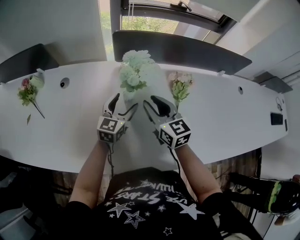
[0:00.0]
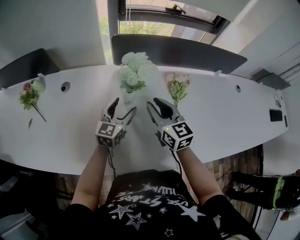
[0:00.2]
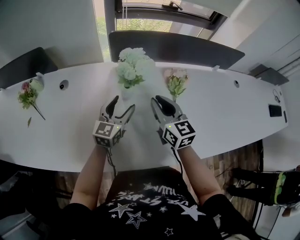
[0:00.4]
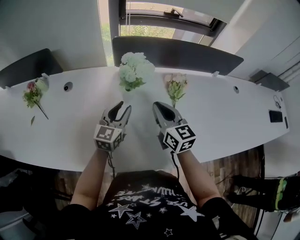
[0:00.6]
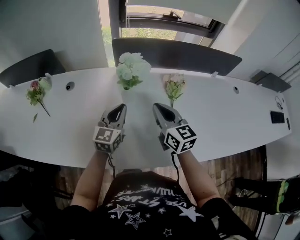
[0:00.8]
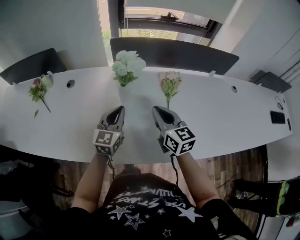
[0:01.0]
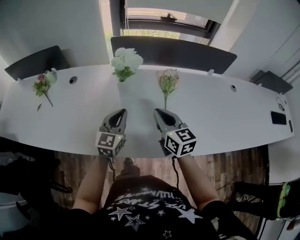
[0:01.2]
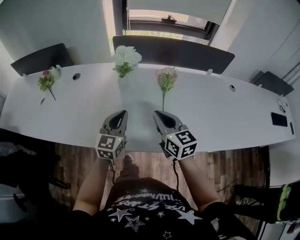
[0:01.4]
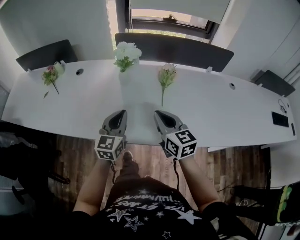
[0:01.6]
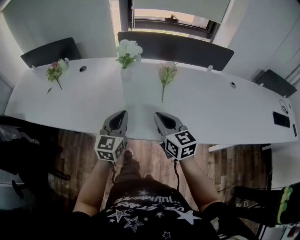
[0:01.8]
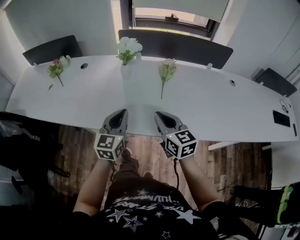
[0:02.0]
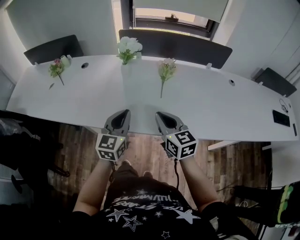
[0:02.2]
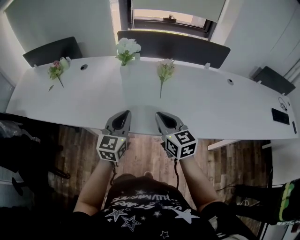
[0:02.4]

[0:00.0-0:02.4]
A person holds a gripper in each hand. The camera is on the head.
0:00.0 to 0:01.2: The right gripper is displaced backward and to the right by roughly 15 cm, and closes, while the left gripper is displaced backward by some 15 cm, and closes up.
0:01.2 to 0:02.4: The two grippers go about 15 cm backward.

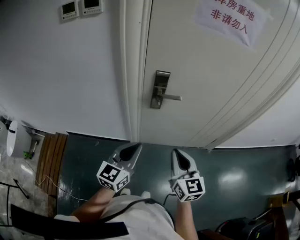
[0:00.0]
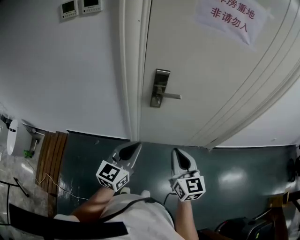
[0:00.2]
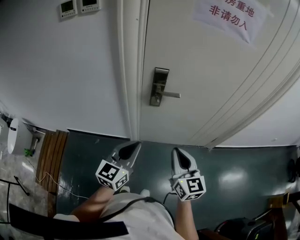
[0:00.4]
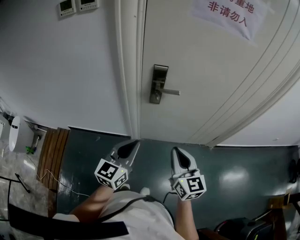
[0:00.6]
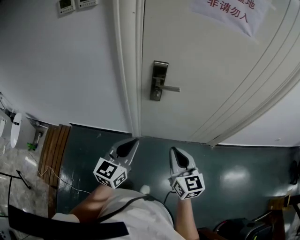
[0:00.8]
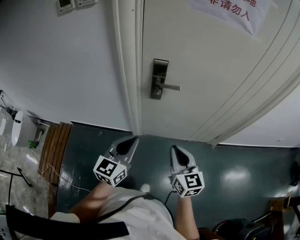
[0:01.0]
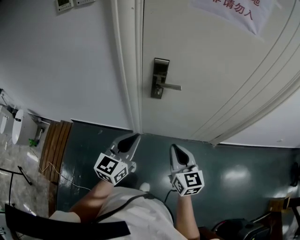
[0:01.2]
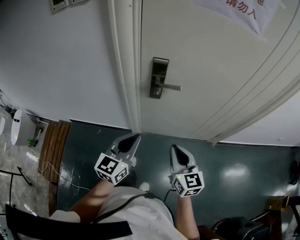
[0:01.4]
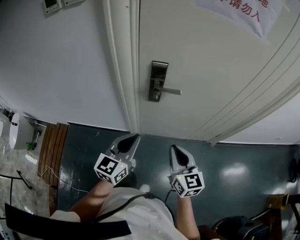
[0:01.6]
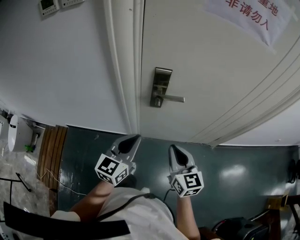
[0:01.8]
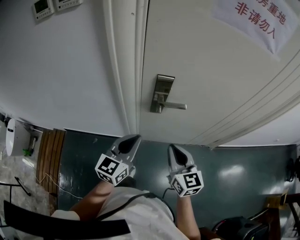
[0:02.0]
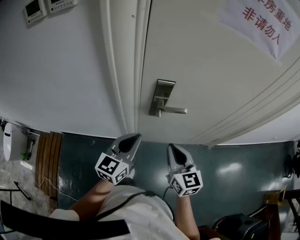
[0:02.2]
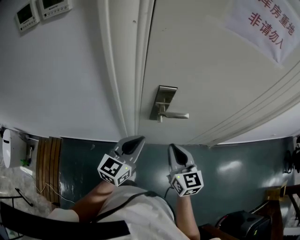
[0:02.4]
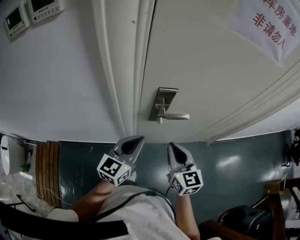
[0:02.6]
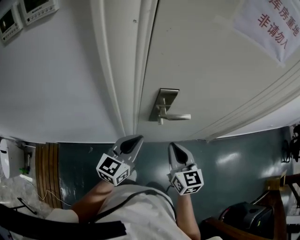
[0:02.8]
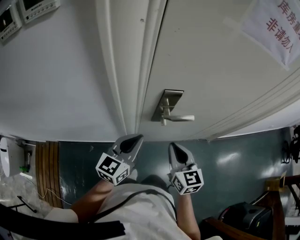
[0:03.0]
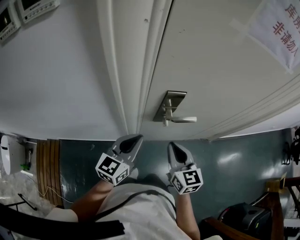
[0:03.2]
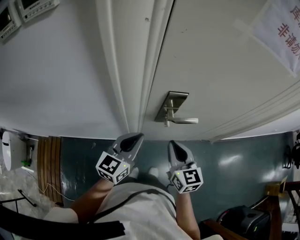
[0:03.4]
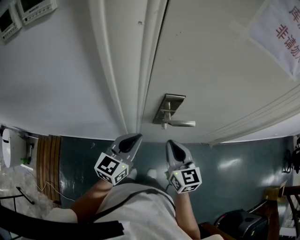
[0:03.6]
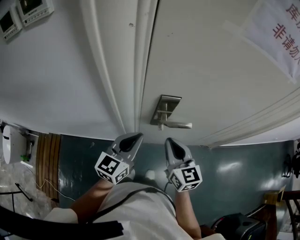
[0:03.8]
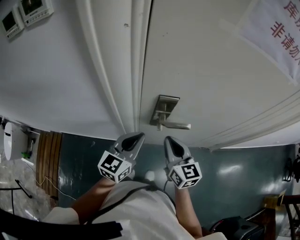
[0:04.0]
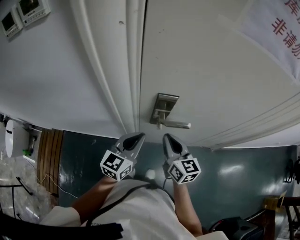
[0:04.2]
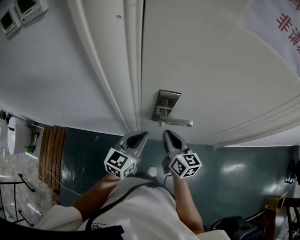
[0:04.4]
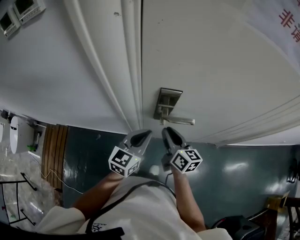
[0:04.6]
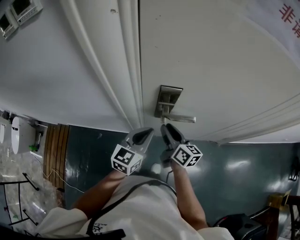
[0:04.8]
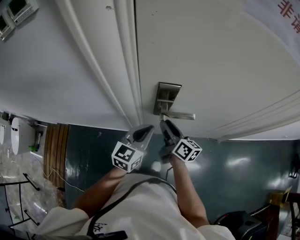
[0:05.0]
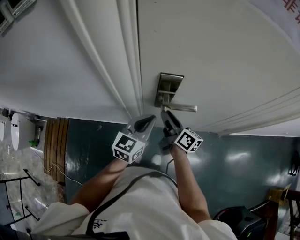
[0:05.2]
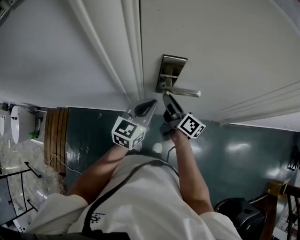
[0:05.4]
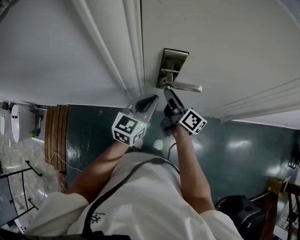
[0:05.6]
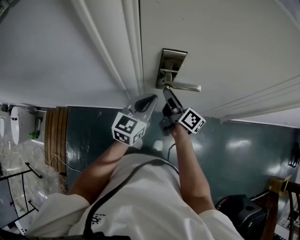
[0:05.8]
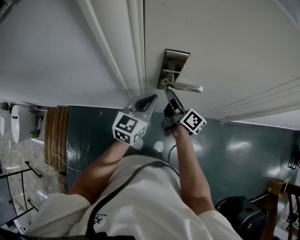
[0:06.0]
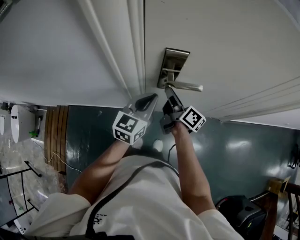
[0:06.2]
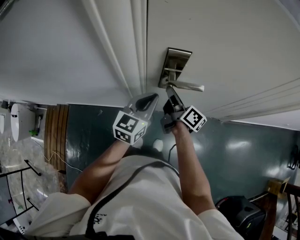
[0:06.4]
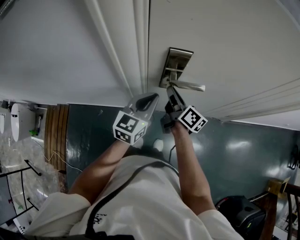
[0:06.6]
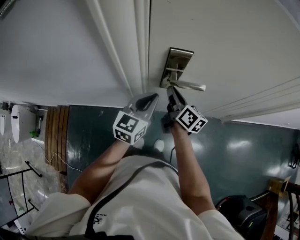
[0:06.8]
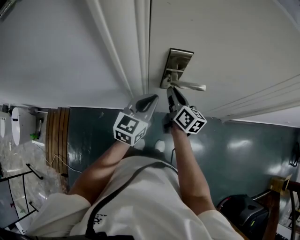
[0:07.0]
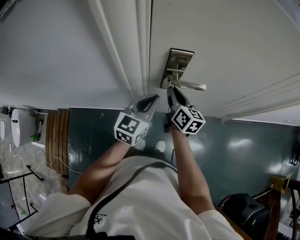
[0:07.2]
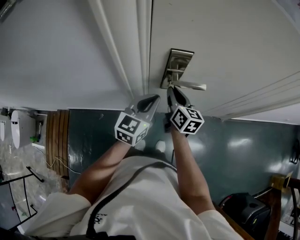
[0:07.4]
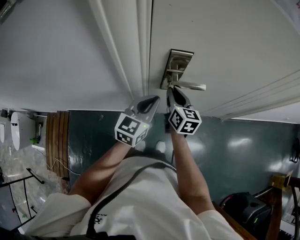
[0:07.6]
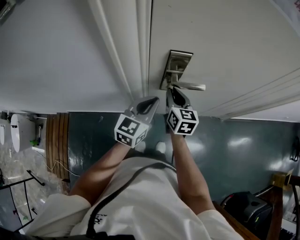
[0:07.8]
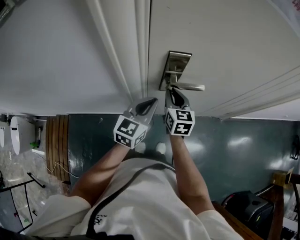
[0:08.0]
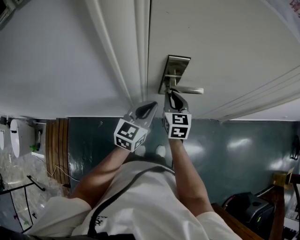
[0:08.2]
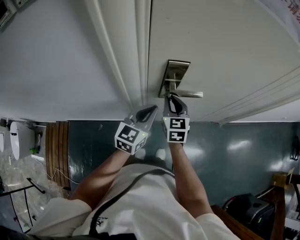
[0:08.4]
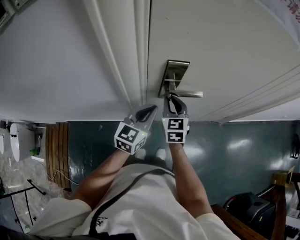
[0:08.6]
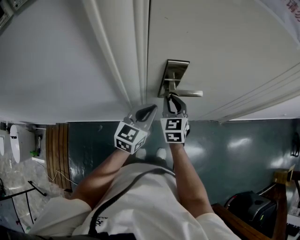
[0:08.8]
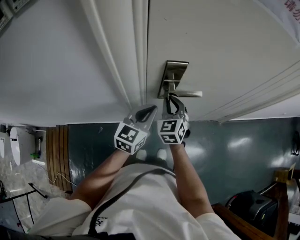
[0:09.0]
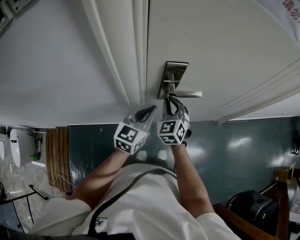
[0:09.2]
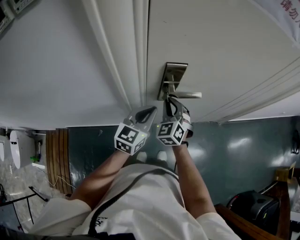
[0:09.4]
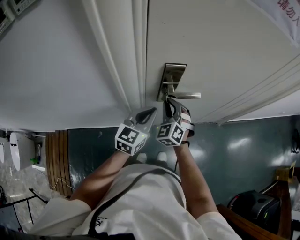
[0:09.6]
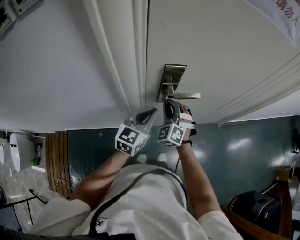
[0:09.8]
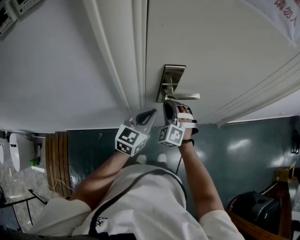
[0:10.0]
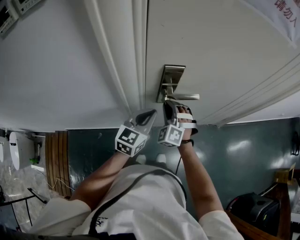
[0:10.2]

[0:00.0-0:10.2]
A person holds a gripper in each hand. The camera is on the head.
0:00.0 to 0:01.4: The right gripper goes approximately 5 cm downward.
0:01.4 to 0:03.0: The two grippers go approximately 20 cm forward and to the left.
0:03.0 to 0:04.4: The left gripper changes place by roughly 5 cm. The right gripper shifts approximately 10 cm forward, and swivels some 20 degrees.
0:04.4 to 0:05.8: The right gripper ends up roughly 5 cm from where it was, turns by roughly 40 degrees, and opens its fingers.
0:05.8 to 0:07.2: The right gripper swivels some 40 degrees, and closes its fingers.
0:07.2 to 0:08.8: The right gripper rotates around the line of its fingers by some 40 degrees, counterclockwise from behind.
0:08.8 to 0:10.2: The right gripper rolls counterclockwise, seen from behind, by roughly 50 degrees.

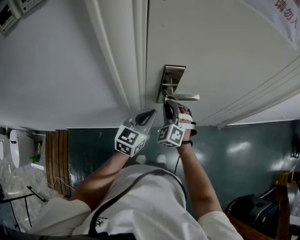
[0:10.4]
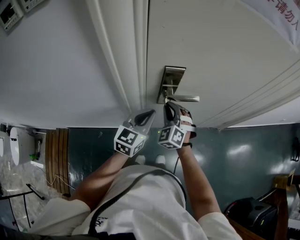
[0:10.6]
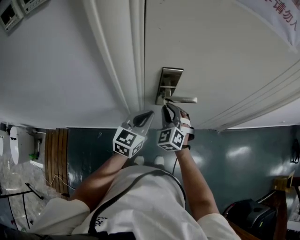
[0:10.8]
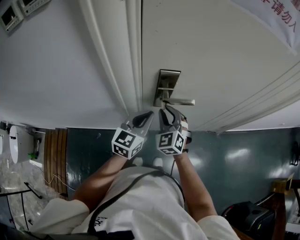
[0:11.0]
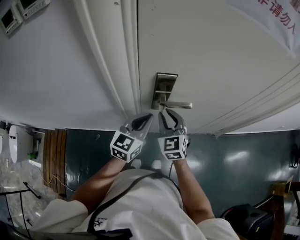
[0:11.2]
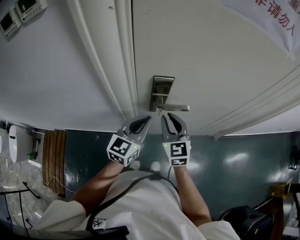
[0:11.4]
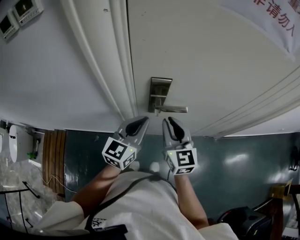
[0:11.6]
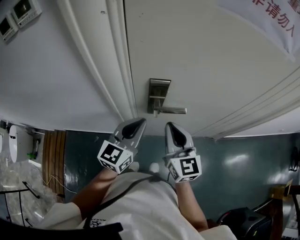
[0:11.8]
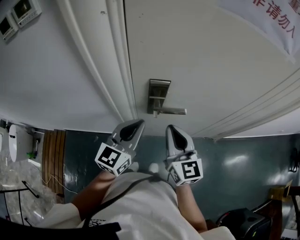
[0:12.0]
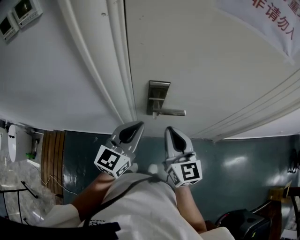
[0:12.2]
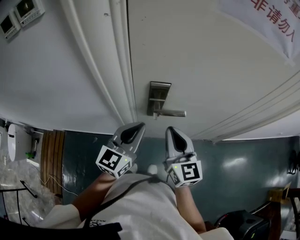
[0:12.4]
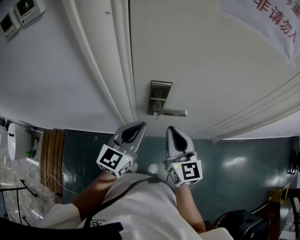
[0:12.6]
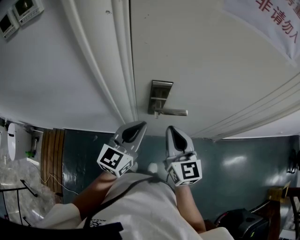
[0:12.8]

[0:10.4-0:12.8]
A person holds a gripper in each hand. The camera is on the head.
0:10.4 to 0:11.6: The left gripper goes about 5 cm upward. The right gripper shifts some 10 cm upward and to the right, and twists roughly 50 degrees clockwise, seen from behind.
0:11.6 to 0:12.8: There are only small adjustments of the grippers.

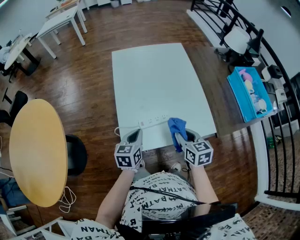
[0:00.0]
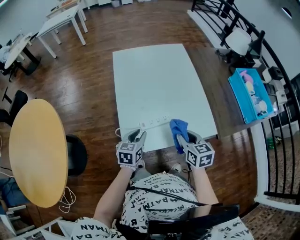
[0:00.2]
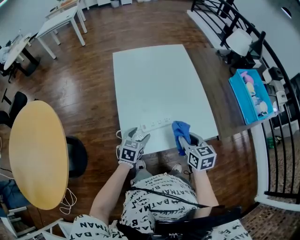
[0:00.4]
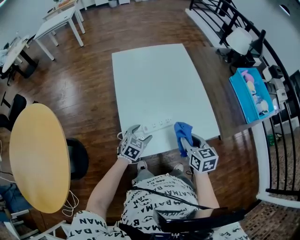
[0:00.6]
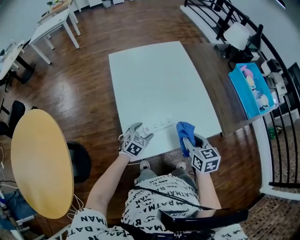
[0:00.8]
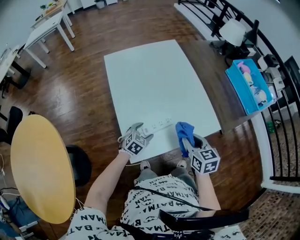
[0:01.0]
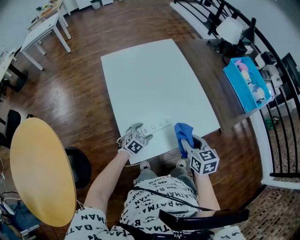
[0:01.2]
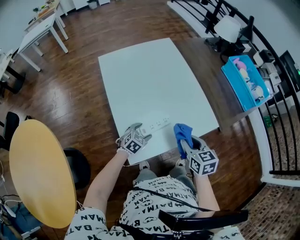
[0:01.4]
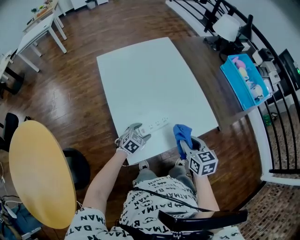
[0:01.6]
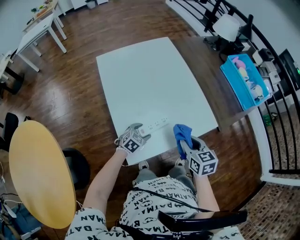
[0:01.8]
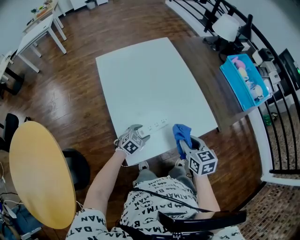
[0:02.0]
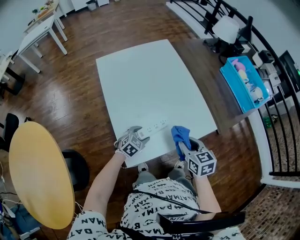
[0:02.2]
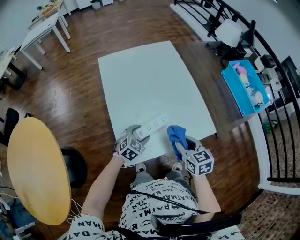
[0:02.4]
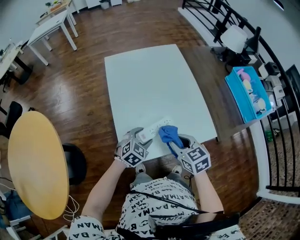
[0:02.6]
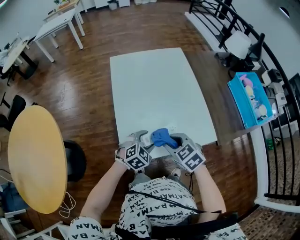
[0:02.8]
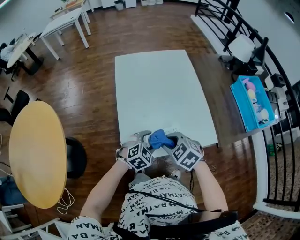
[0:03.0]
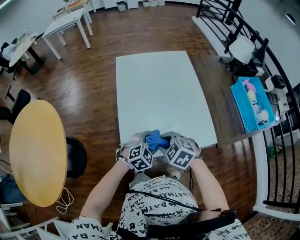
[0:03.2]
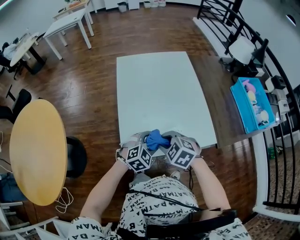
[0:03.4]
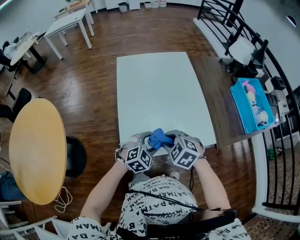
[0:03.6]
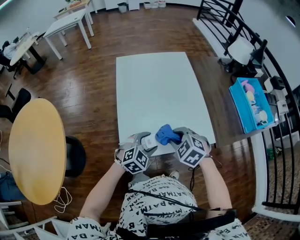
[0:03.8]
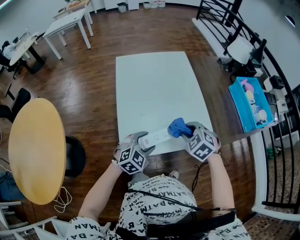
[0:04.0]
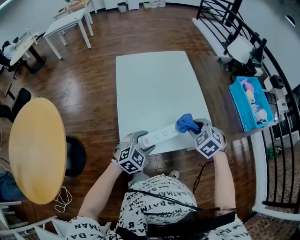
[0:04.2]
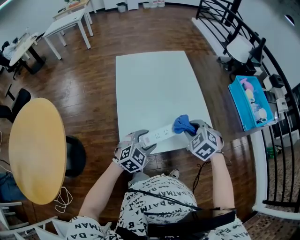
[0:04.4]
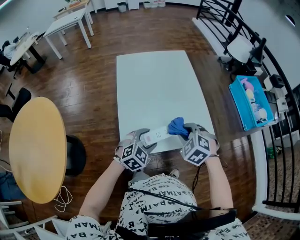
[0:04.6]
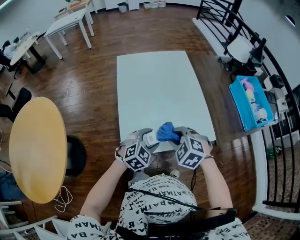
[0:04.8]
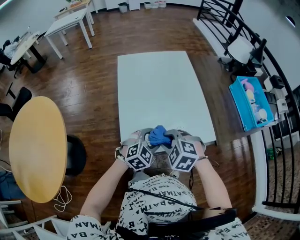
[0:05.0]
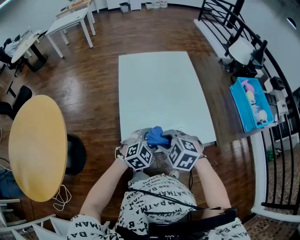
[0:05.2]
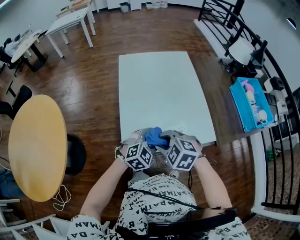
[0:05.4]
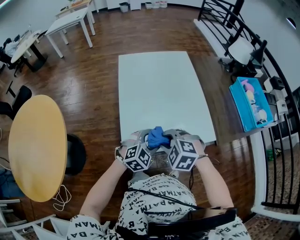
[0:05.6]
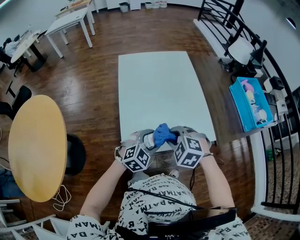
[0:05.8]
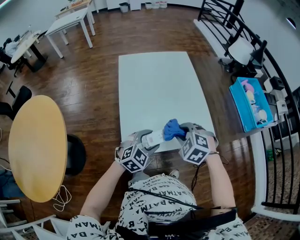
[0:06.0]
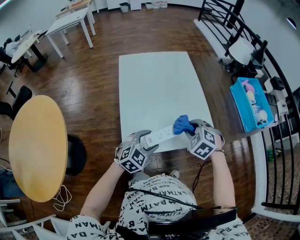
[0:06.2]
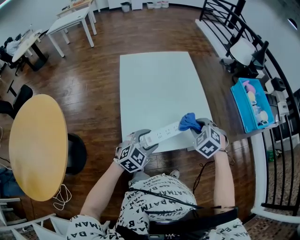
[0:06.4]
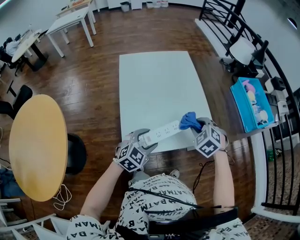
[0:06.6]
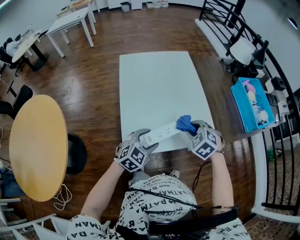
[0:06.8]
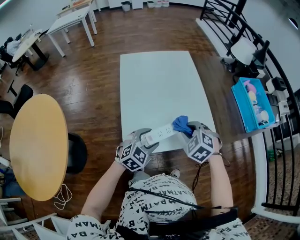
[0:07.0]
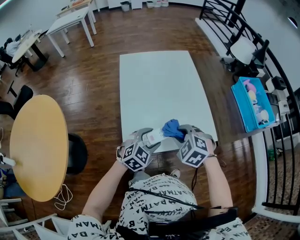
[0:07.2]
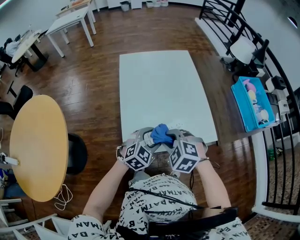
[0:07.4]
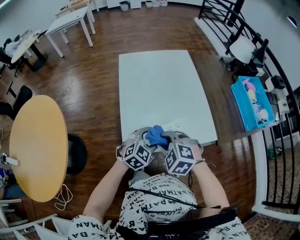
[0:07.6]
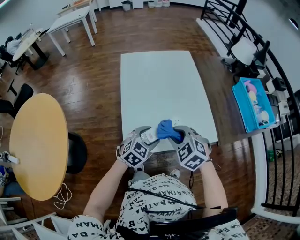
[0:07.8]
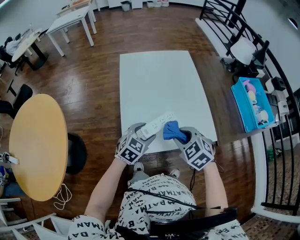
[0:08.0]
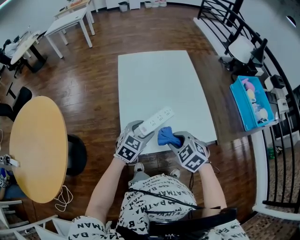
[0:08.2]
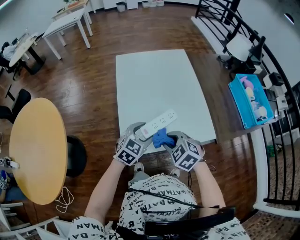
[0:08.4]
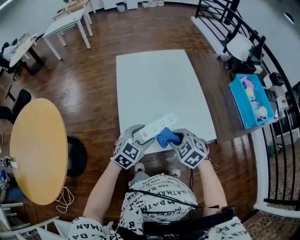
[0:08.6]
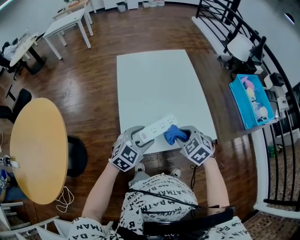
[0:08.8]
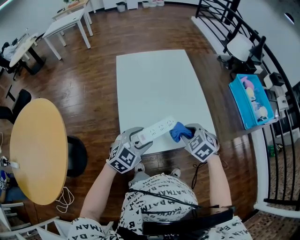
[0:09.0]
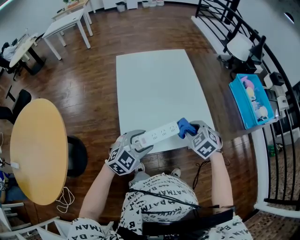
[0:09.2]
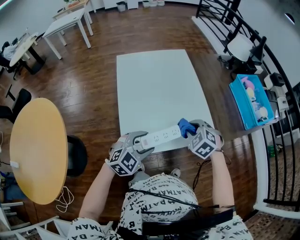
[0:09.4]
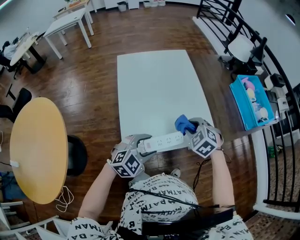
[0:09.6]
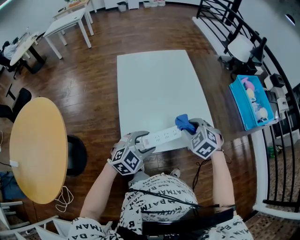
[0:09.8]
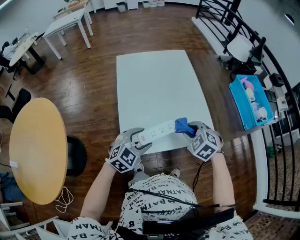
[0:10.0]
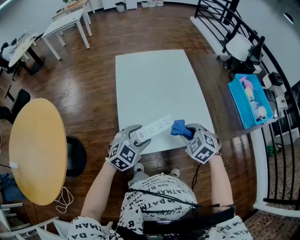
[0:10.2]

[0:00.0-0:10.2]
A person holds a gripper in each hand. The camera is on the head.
0:00.0 to 0:01.4: The left gripper goes roughly 15 cm downward and forward, rotates roughly 50 degrees, and opens.
0:01.4 to 0:03.0: The left gripper travels upward by roughly 10 cm. Meanwhile the right gripper changes place by roughly 10 cm, and rotates around the line of its fingers by roughly 50 degrees, counterclockwise from behind.
0:03.0 to 0:04.4: The left gripper moves about 5 cm. The right gripper heads to the right, covering some 10 cm.
0:04.4 to 0:05.8: The right gripper shifts approximately 10 cm to the left and backward.
0:05.8 to 0:07.2: The right gripper reaches some 10 cm to the right, then returns.
0:07.2 to 0:08.8: The right gripper goes left and right, about 10 cm each way, reversing 3 times.
